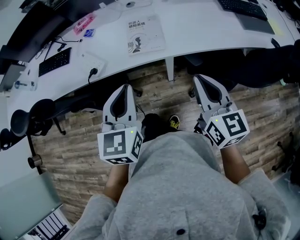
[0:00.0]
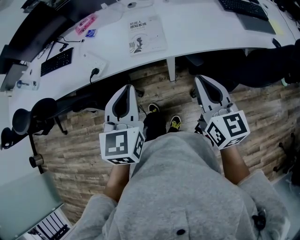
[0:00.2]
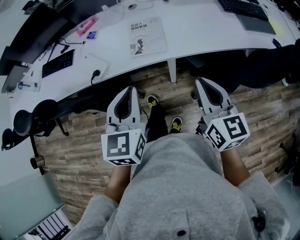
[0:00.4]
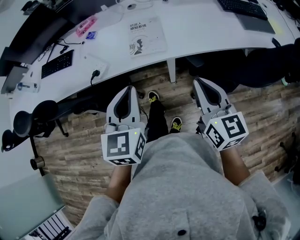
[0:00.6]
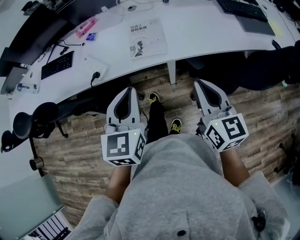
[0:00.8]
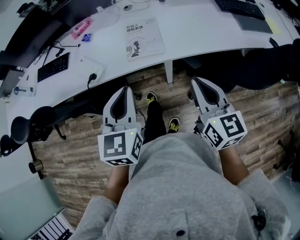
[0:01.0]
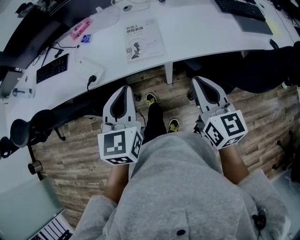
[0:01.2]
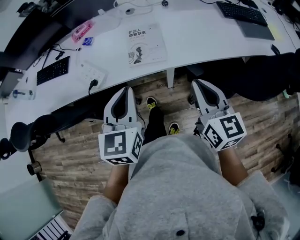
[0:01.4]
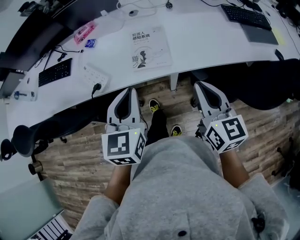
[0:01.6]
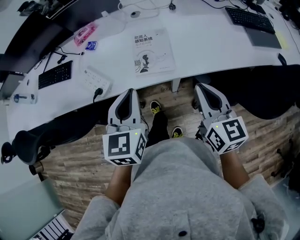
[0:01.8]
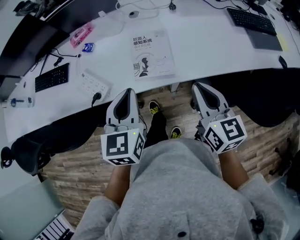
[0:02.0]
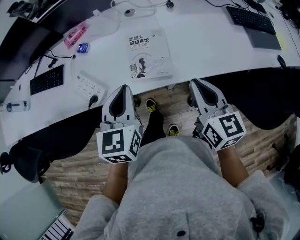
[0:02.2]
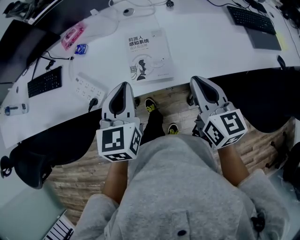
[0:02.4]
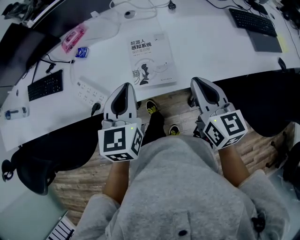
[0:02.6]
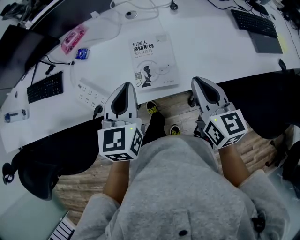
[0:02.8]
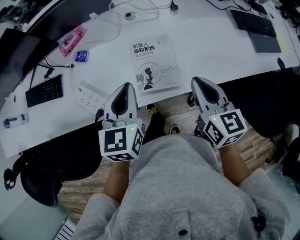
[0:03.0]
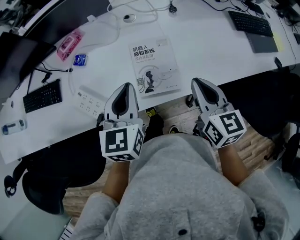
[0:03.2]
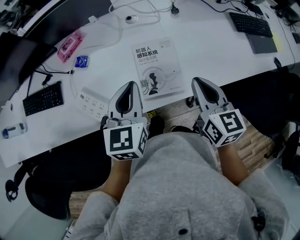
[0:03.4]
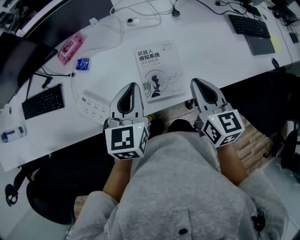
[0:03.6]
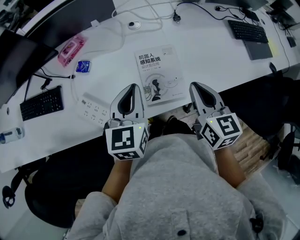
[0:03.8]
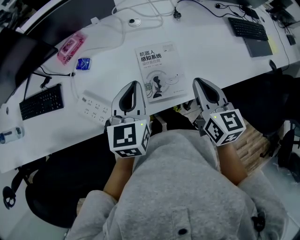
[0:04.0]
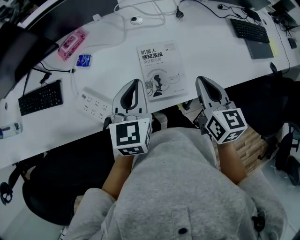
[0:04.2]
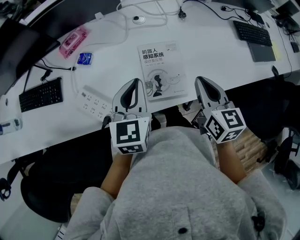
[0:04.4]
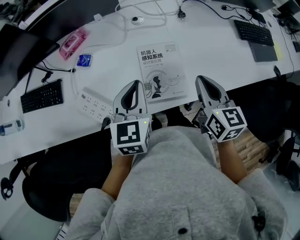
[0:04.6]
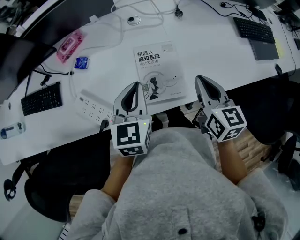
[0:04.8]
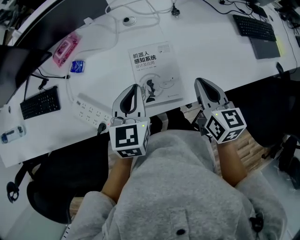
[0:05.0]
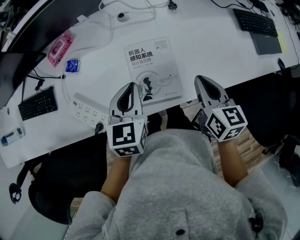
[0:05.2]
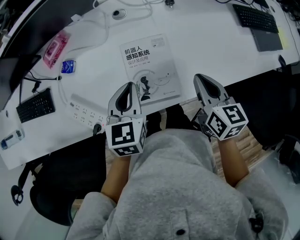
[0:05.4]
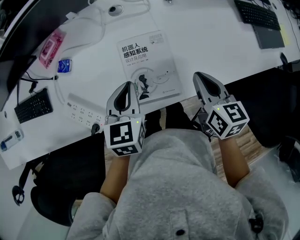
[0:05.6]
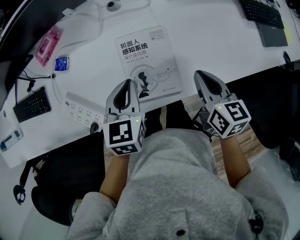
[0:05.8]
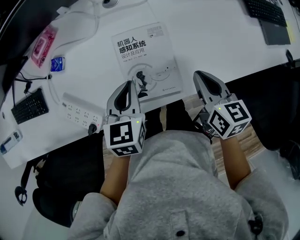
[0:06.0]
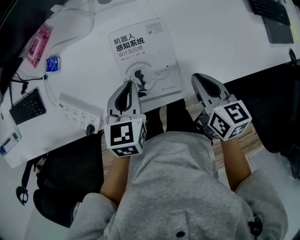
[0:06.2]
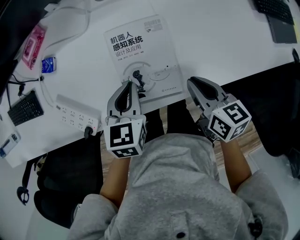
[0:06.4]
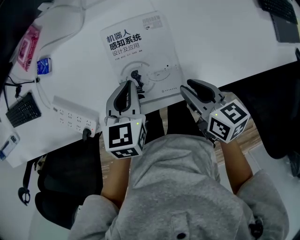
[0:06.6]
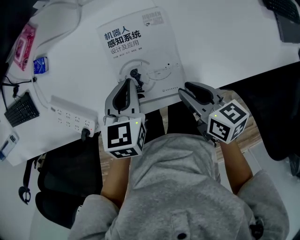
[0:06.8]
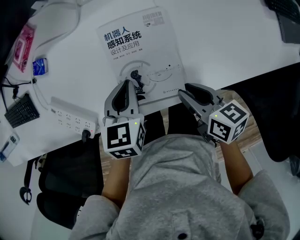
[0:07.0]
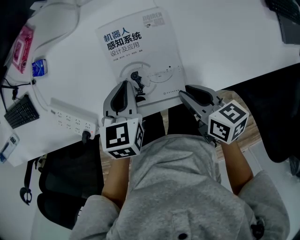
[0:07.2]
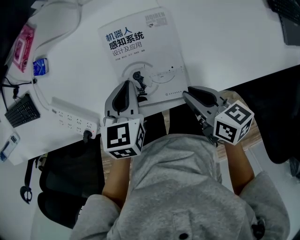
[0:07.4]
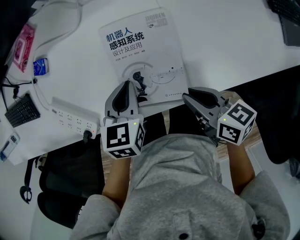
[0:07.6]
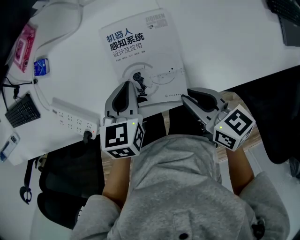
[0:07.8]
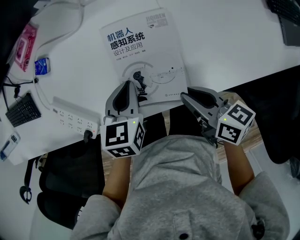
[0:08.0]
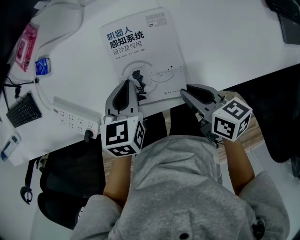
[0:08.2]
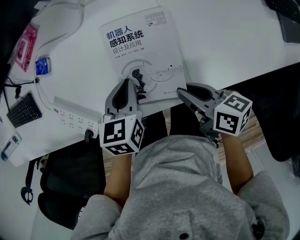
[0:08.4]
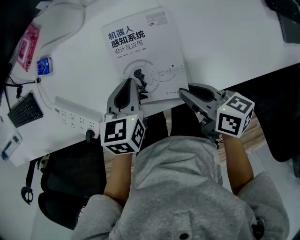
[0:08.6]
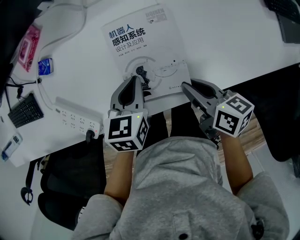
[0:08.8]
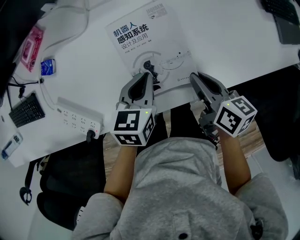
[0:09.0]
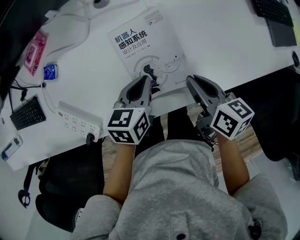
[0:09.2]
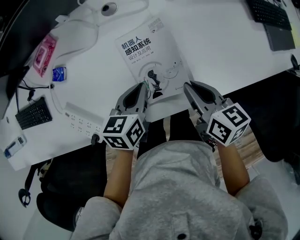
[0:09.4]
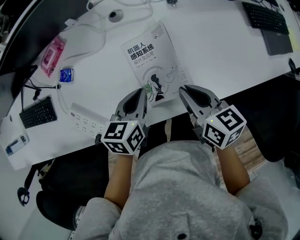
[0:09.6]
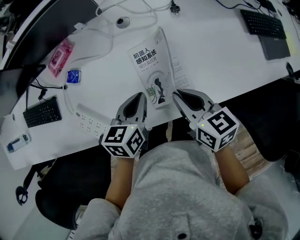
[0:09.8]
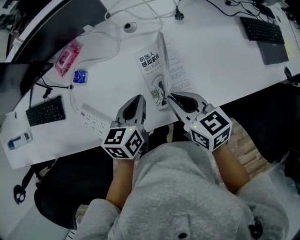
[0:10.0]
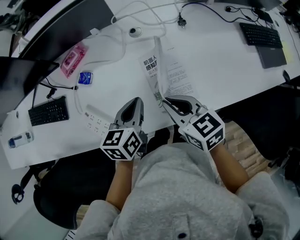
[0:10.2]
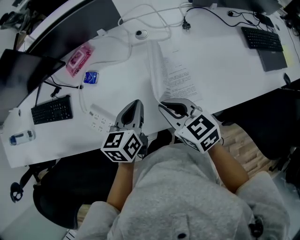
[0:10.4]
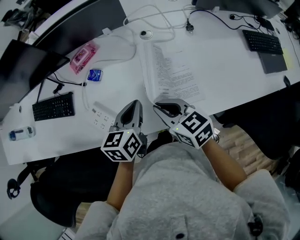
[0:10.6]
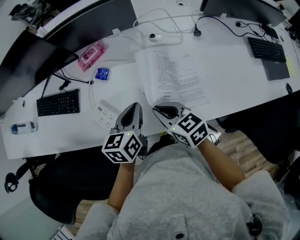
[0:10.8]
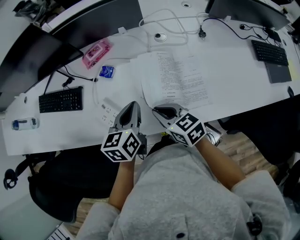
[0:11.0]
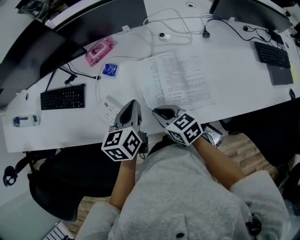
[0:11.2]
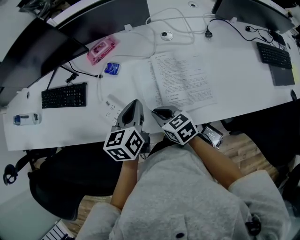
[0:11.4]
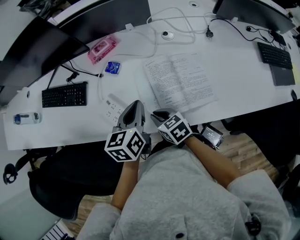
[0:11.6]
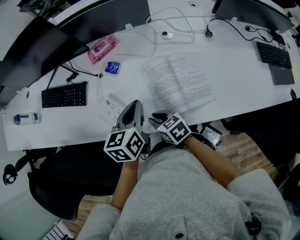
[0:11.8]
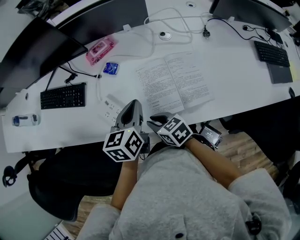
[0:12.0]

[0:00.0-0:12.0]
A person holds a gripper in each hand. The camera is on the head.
0.0 to 1.6 s: The two grippers go some 5 cm forward.
1.6 to 3.0 s: Both grippers move forward, some 15 cm.
3.0 to 4.4 s: The right gripper moves about 5 cm; the left gripper ends up approximately 5 cm from where it was.
4.4 to 6.0 s: The grippers both shift downward and to the right by approximately 10 cm.
6.0 to 7.6 s: The right gripper is displaced downward and to the left by some 10 cm, and swivels roughly 30 degrees. The left gripper heads downward, covering some 10 cm.
7.6 to 9.0 s: The left gripper heads to the right, covering roughly 5 cm; the right gripper ends up roughly 5 cm from where it was, and swivels about 20 degrees.
9.0 to 10.4 s: The left gripper shifts some 15 cm upward and to the left. Meanwhile the right gripper is displaced to the left and upward by roughly 20 cm, and turns by some 40 degrees.
10.4 to 12.0 s: The right gripper shifts approximately 20 cm to the left and downward, while the left gripper heads to the left, covering approximately 10 cm.

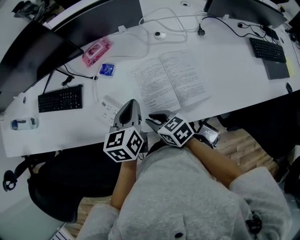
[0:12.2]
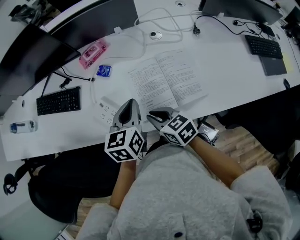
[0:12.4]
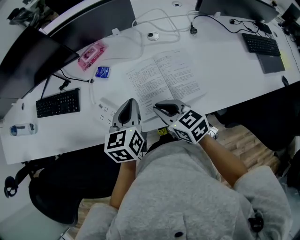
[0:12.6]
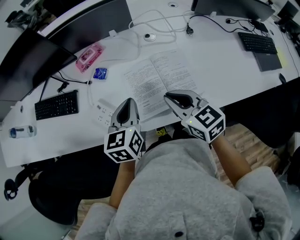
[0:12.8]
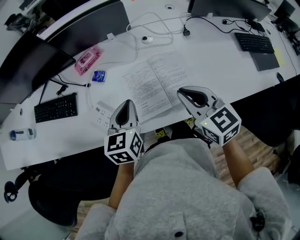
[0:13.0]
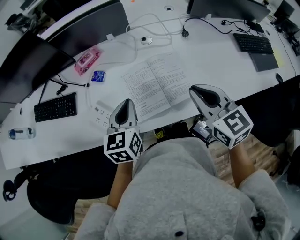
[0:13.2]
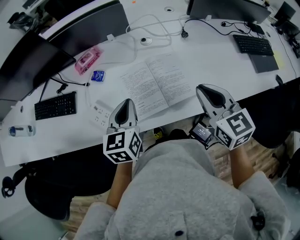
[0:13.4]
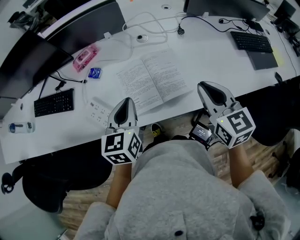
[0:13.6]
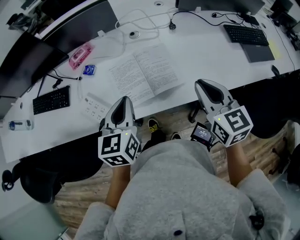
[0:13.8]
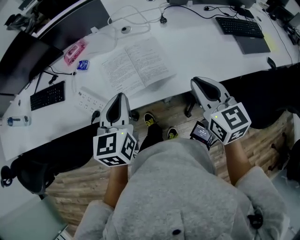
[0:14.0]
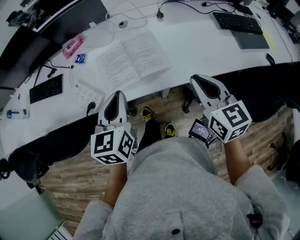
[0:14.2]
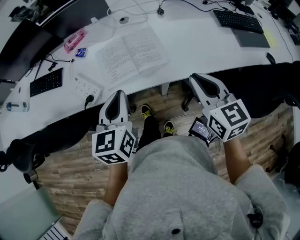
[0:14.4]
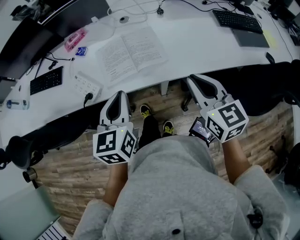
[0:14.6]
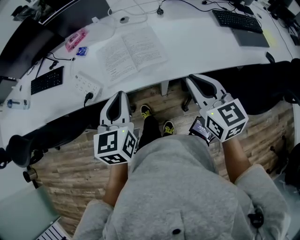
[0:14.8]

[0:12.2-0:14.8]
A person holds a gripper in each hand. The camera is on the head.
12.2 to 13.4 s: The right gripper shifts some 30 cm to the right and upward, and turns by approximately 40 degrees; the left gripper ends up approximately 5 cm from where it was.
13.4 to 14.8 s: Both grippers travel together backward and to the right, approximately 20 cm.

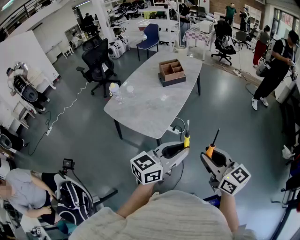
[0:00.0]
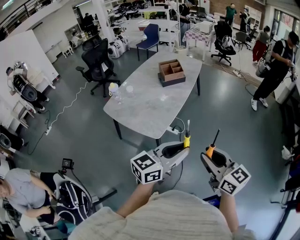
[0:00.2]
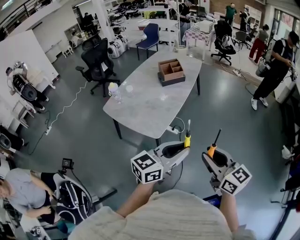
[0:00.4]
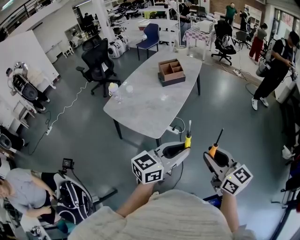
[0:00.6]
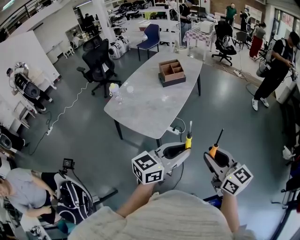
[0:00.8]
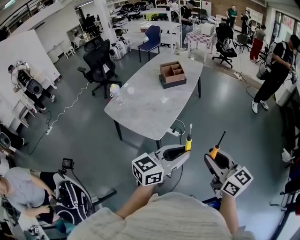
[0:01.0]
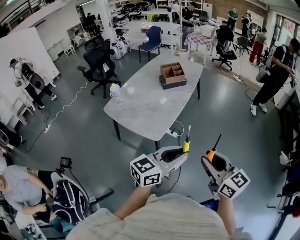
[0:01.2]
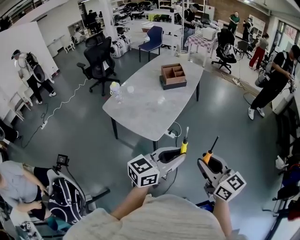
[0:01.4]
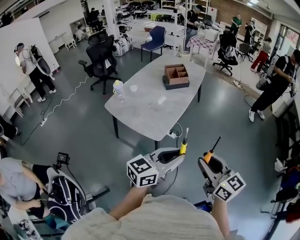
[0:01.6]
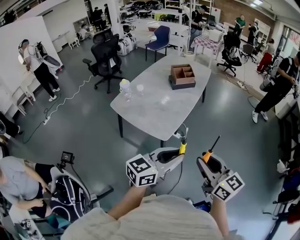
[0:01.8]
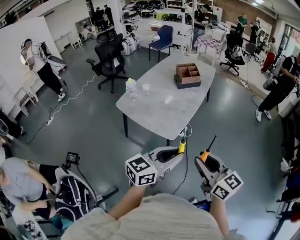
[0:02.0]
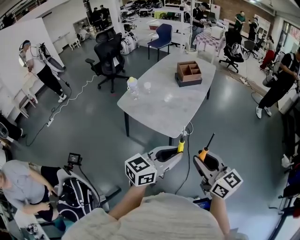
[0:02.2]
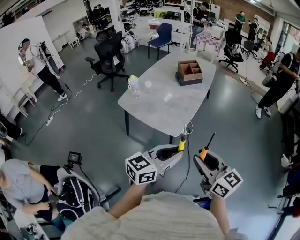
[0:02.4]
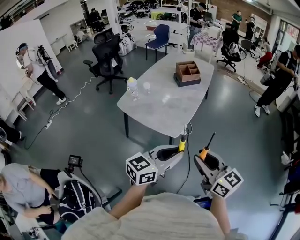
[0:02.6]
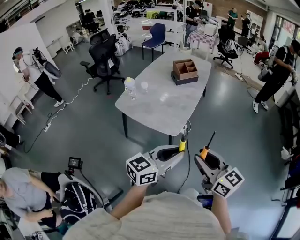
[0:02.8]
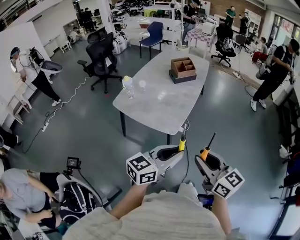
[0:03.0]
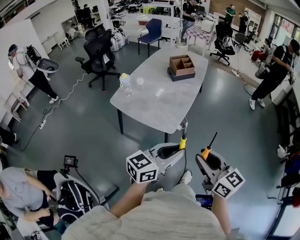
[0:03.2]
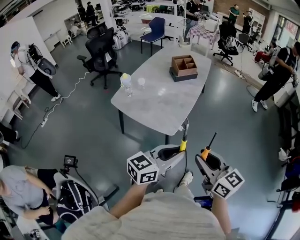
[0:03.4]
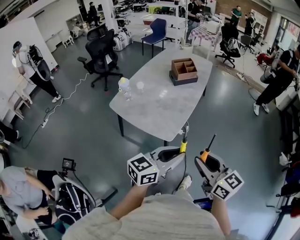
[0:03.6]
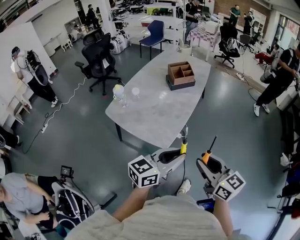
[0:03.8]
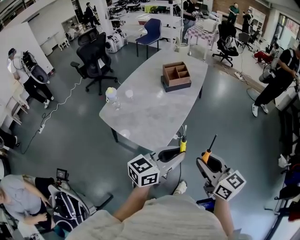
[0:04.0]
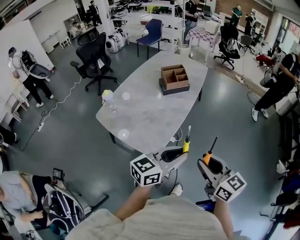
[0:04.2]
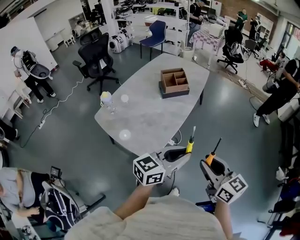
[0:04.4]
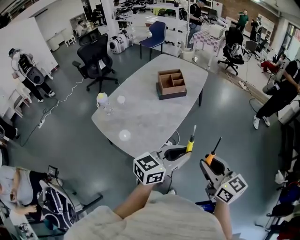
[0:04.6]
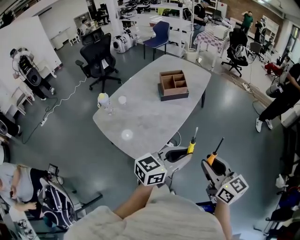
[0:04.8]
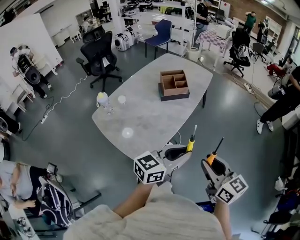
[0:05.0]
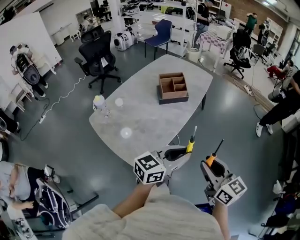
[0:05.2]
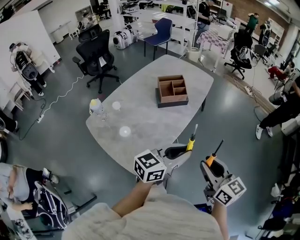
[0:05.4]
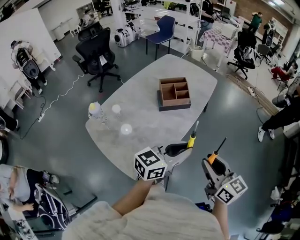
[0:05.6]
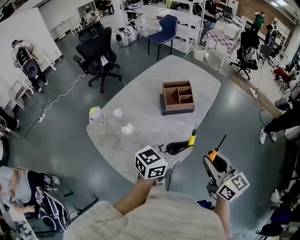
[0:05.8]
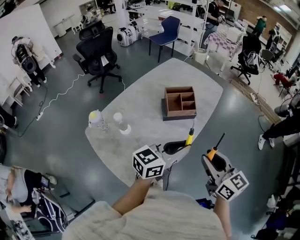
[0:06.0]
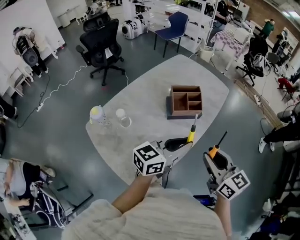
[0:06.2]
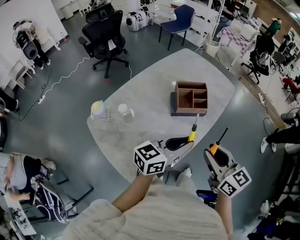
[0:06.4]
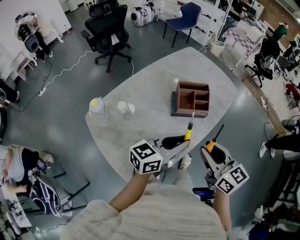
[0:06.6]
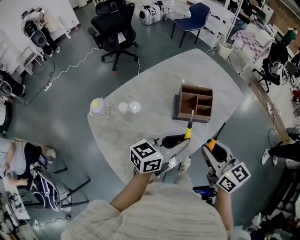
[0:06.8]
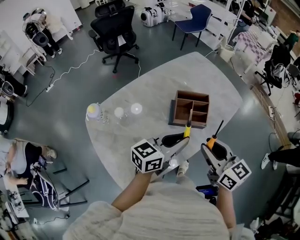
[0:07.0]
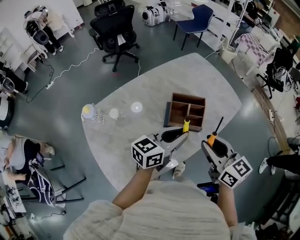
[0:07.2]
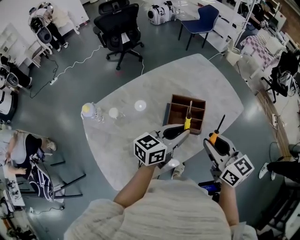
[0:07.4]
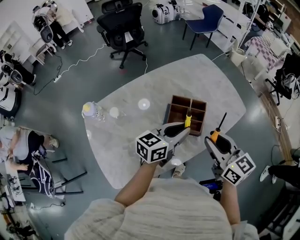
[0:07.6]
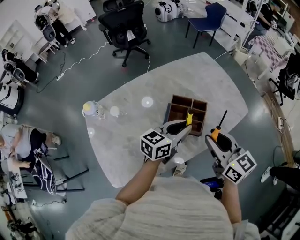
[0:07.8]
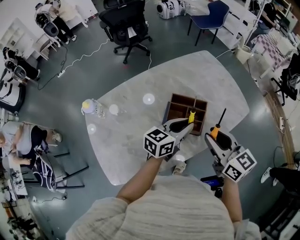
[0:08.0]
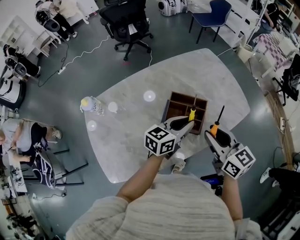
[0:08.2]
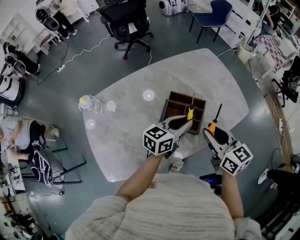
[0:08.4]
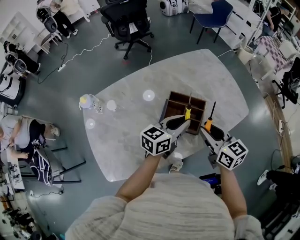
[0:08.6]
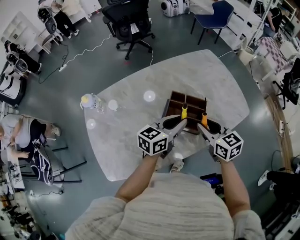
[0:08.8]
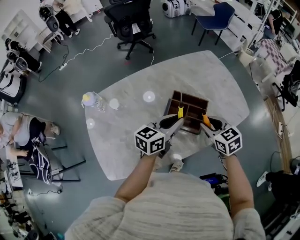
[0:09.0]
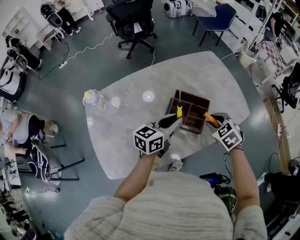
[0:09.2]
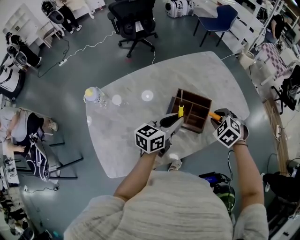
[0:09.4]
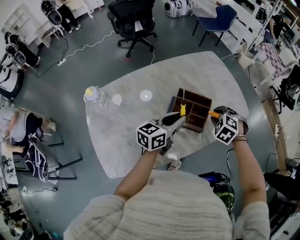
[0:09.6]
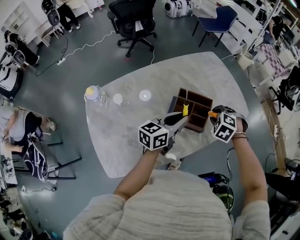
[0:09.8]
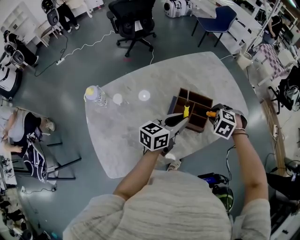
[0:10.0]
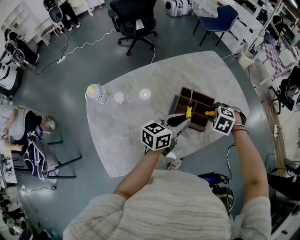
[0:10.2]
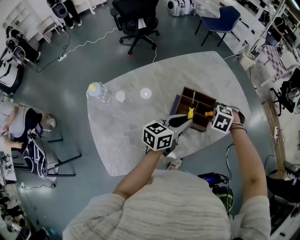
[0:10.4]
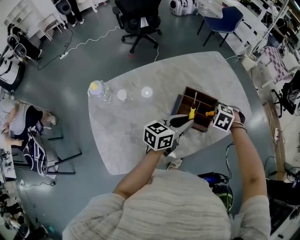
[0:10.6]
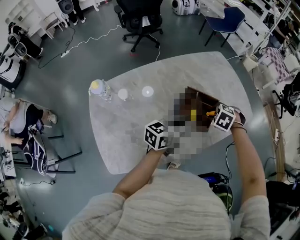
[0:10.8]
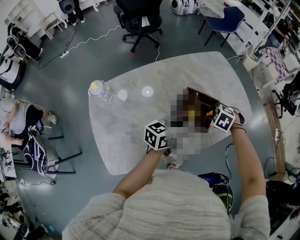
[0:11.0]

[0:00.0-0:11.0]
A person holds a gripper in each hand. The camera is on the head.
0.0 to 1.6 s: The grippers stay close to where they were, moving slightly.
1.6 to 3.2 s: The two grippers go approximately 10 cm to the left.
3.2 to 4.8 s: Both grippers move forward and to the right, about 35 cm.
4.8 to 6.2 s: Both grippers travel together forward, about 30 cm.
6.2 to 7.8 s: Both grippers move forward, about 25 cm. The right gripper rotates roughly 20 degrees; the left gripper rotates roughly 30 degrees.
7.8 to 9.4 s: The left gripper shifts about 5 cm to the left; the right gripper travels downward and forward by roughly 15 cm, and points its fingers roughly 50 degrees further downward.
9.4 to 11.0 s: The right gripper heads downward, covering some 5 cm.
